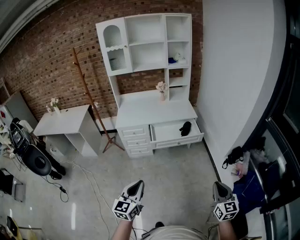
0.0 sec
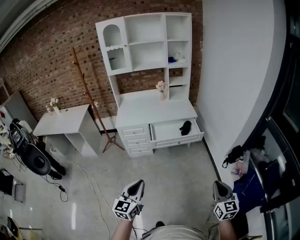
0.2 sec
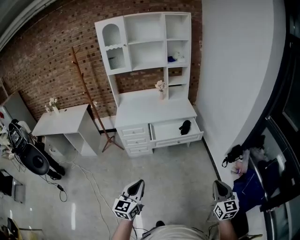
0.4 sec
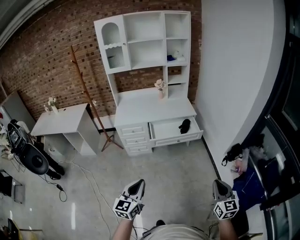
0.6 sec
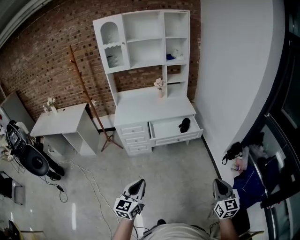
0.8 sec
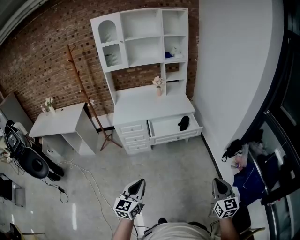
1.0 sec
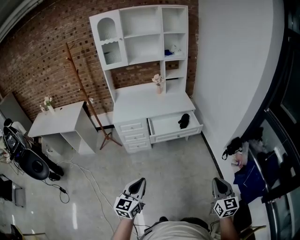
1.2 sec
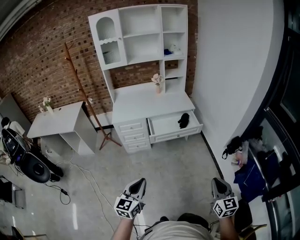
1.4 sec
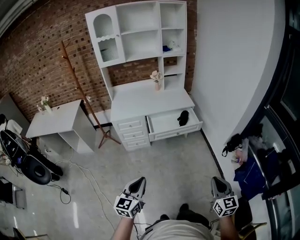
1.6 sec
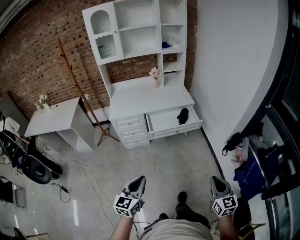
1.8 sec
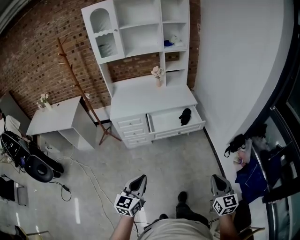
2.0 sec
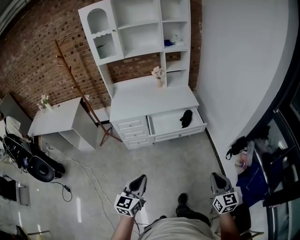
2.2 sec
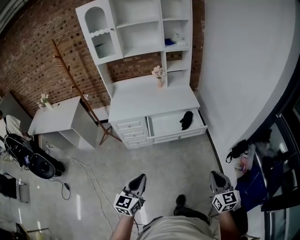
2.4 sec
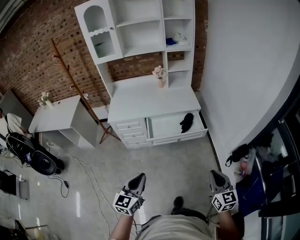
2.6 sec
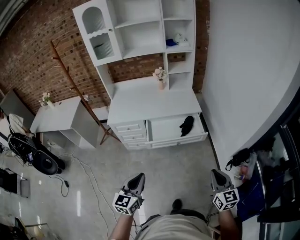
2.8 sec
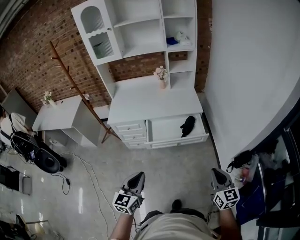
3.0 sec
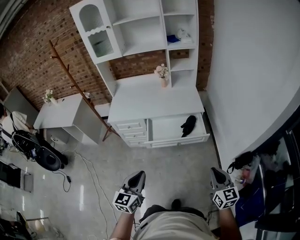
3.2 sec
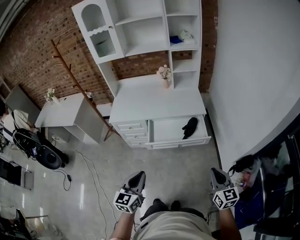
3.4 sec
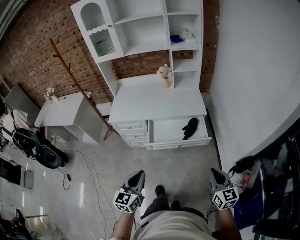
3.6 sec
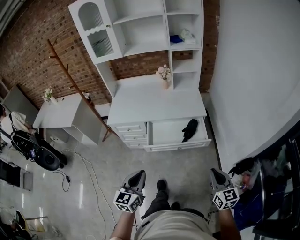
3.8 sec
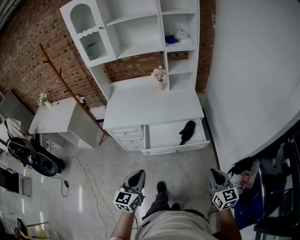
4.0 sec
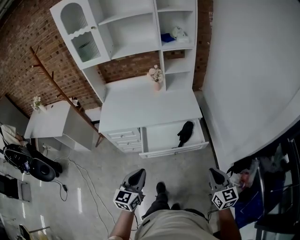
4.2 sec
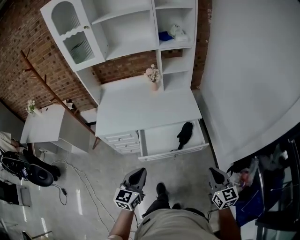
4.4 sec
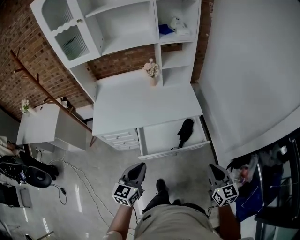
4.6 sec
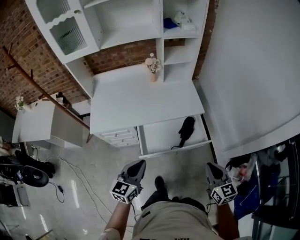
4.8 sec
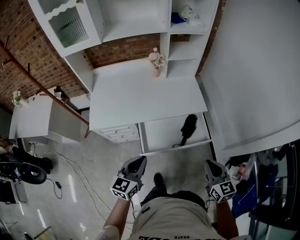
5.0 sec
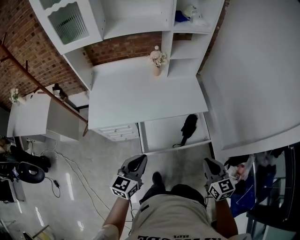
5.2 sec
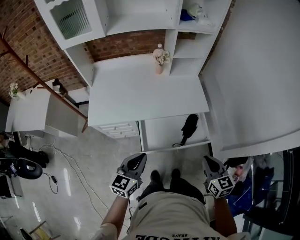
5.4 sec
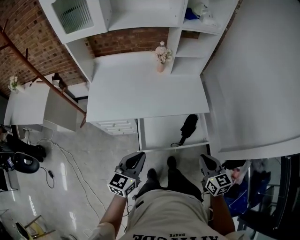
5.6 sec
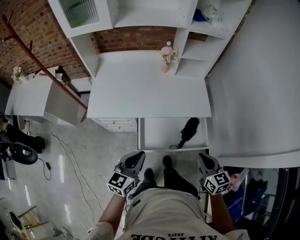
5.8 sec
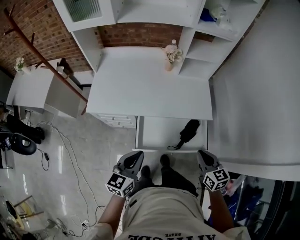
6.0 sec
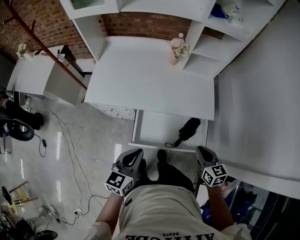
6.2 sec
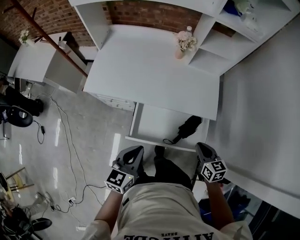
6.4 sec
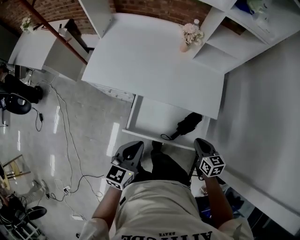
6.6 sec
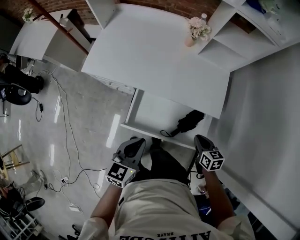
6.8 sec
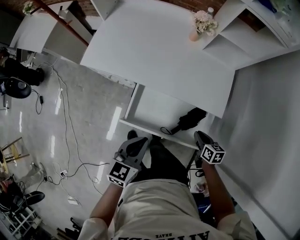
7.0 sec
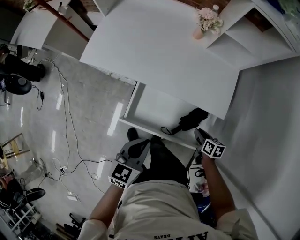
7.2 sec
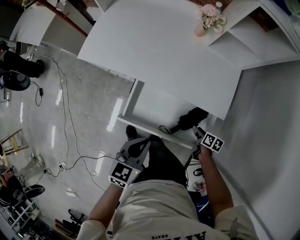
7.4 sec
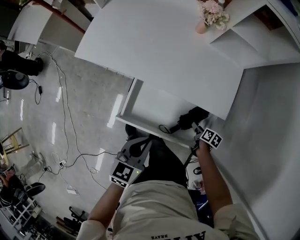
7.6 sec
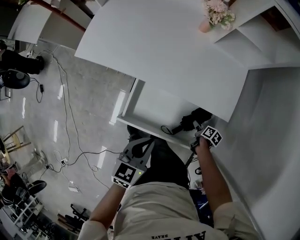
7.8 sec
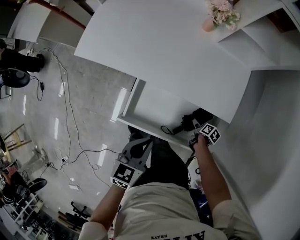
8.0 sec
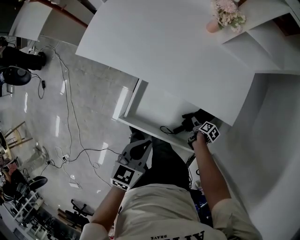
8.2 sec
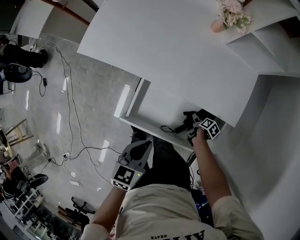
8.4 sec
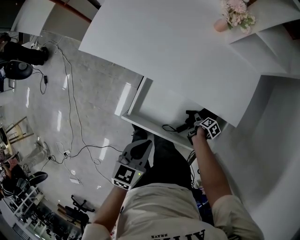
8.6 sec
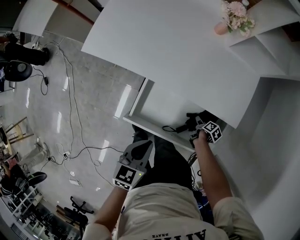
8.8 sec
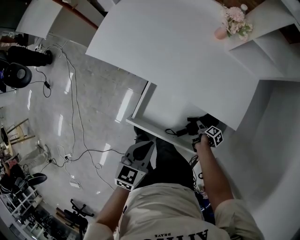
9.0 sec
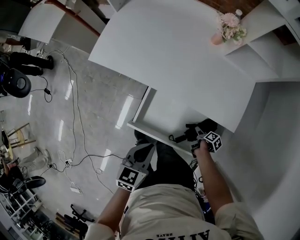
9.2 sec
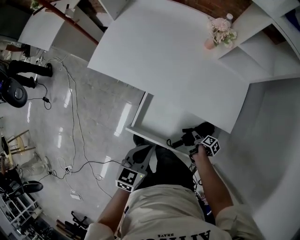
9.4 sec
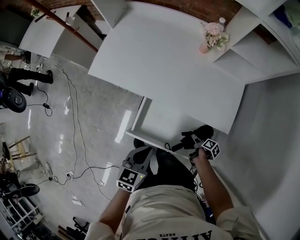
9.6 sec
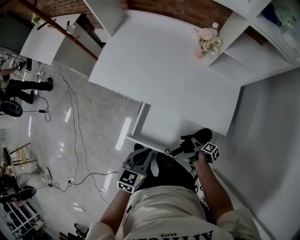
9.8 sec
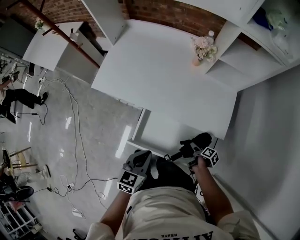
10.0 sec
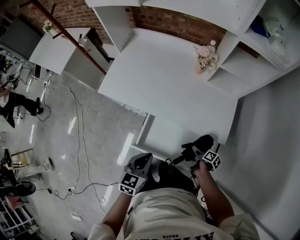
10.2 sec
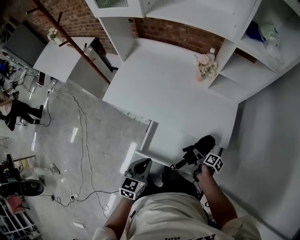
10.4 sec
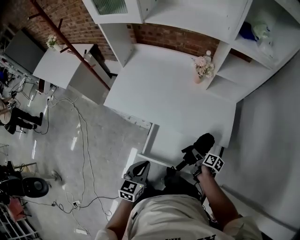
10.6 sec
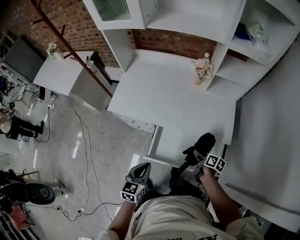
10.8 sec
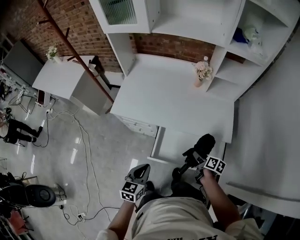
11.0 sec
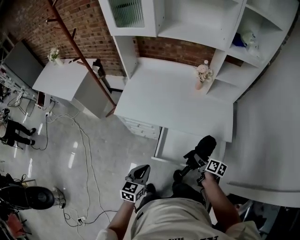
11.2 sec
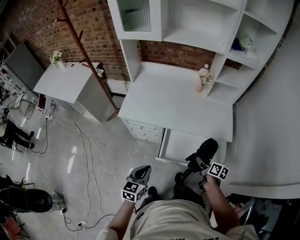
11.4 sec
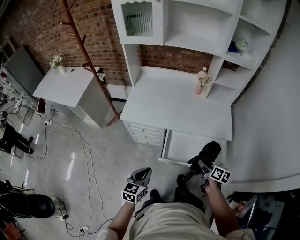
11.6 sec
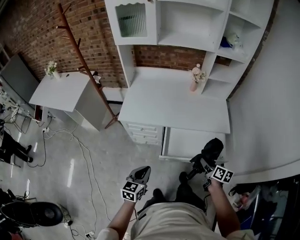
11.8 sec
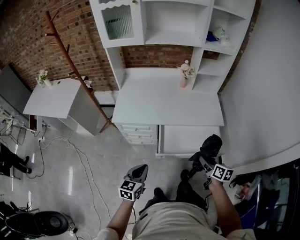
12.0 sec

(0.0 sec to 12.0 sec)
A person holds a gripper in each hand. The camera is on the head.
0.0 sec - 1.6 sec: The left gripper shifts by roughly 5 cm; the right gripper shifts roughly 5 cm to the left.
1.6 sec - 3.0 sec: The left gripper is displaced forward and to the right by roughly 25 cm; the right gripper goes approximately 30 cm forward.
3.0 sec - 4.4 sec: Both grippers move forward, approximately 20 cm.
4.4 sec - 6.0 sec: The right gripper is displaced forward and to the left by some 25 cm; the left gripper is displaced forward by approximately 15 cm.
6.0 sec - 7.6 sec: The left gripper travels downward and to the right by roughly 15 cm, and turns by roughly 20 degrees, while the right gripper goes roughly 35 cm downward, angles its fingers downward, by about 30 degrees, and opens.
7.6 sec - 9.0 sec: The right gripper is displaced downward by about 5 cm, and rotates approximately 30 degrees; the left gripper moves approximately 5 cm.
9.0 sec - 10.4 sec: The right gripper heads upward, covering some 15 cm, and swivels approximately 20 degrees, while the left gripper moves upward, roughly 5 cm.
10.4 sec - 12.0 sec: The right gripper shifts roughly 30 cm upward, backward and to the left, and rotates about 40 degrees. Meanwhile the left gripper shifts about 20 cm to the left and backward.

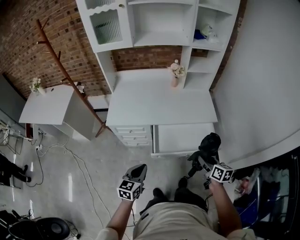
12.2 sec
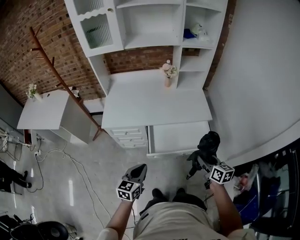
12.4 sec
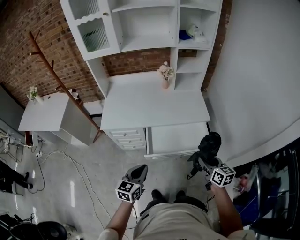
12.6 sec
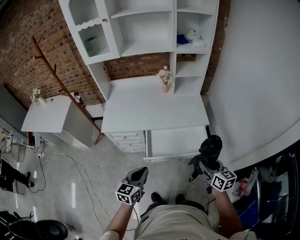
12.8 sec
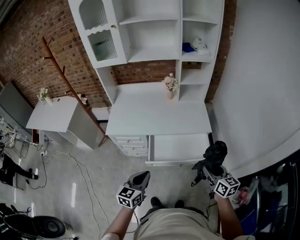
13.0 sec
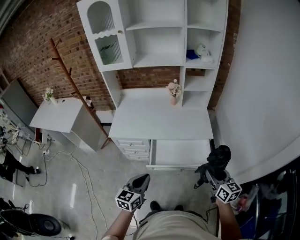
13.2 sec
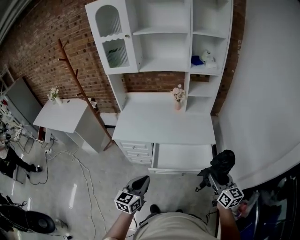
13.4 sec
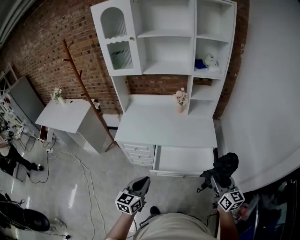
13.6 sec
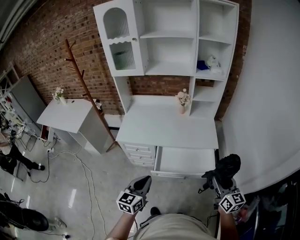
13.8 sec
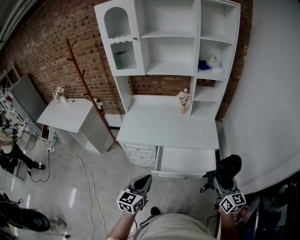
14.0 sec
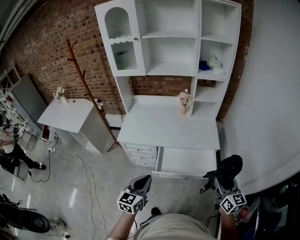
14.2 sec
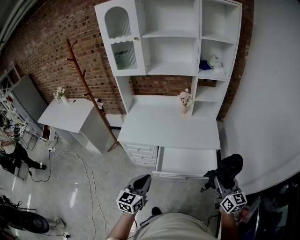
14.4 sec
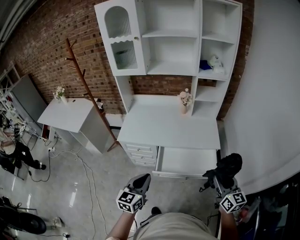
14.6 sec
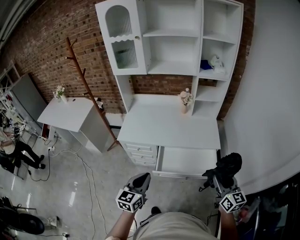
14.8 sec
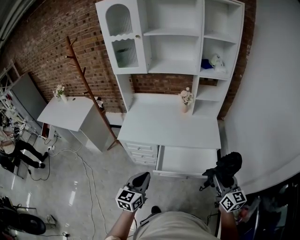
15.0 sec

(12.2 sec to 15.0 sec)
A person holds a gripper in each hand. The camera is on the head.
12.2 sec - 13.6 sec: Both grippers travel together upward and to the right, roughly 15 cm. The right gripper swivels some 30 degrees.
13.6 sec - 15.0 sec: The grippers make only small movements.

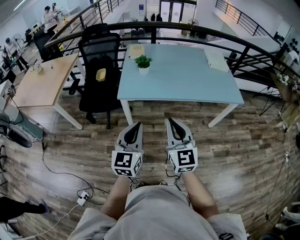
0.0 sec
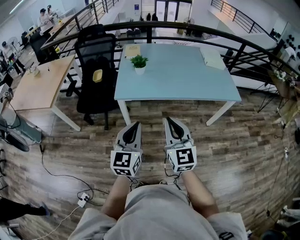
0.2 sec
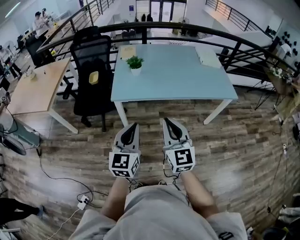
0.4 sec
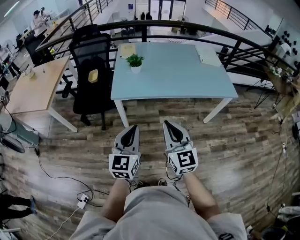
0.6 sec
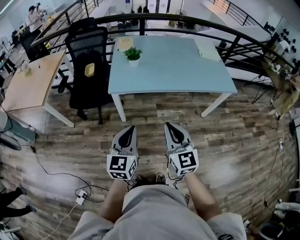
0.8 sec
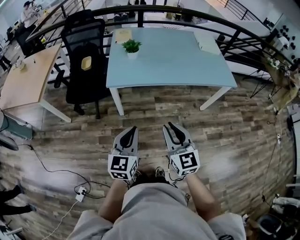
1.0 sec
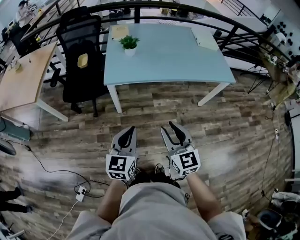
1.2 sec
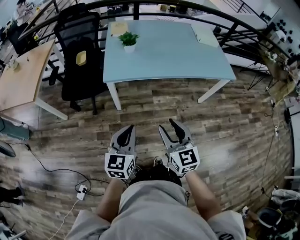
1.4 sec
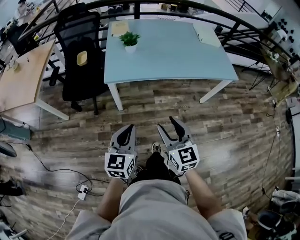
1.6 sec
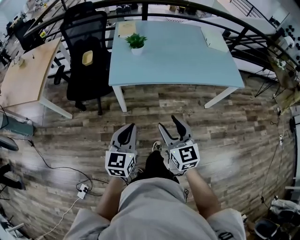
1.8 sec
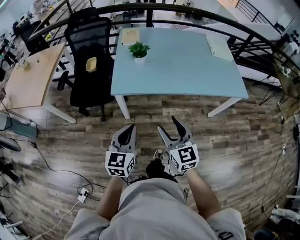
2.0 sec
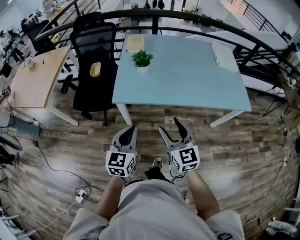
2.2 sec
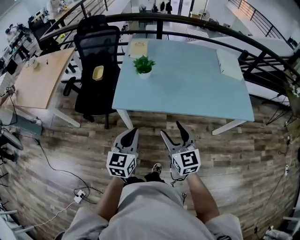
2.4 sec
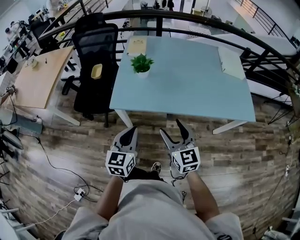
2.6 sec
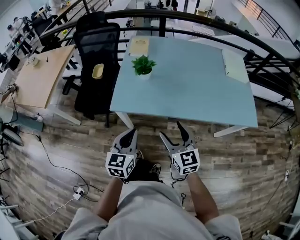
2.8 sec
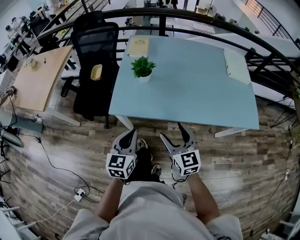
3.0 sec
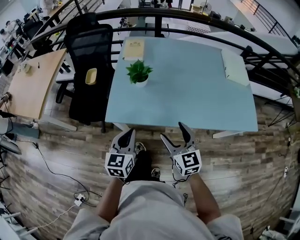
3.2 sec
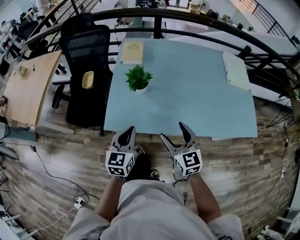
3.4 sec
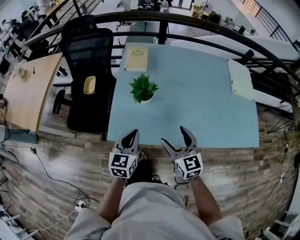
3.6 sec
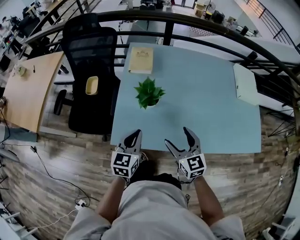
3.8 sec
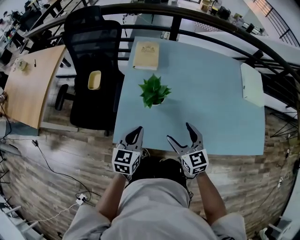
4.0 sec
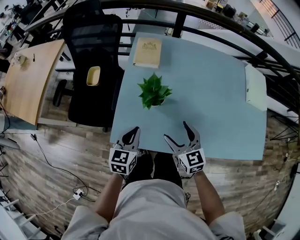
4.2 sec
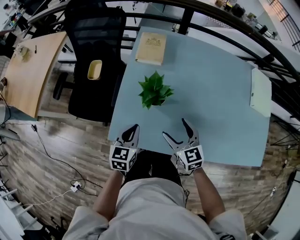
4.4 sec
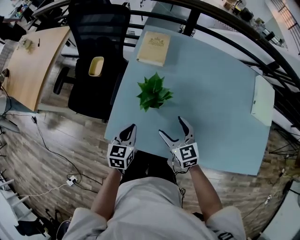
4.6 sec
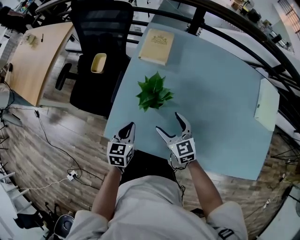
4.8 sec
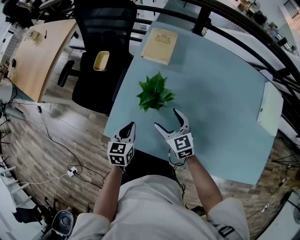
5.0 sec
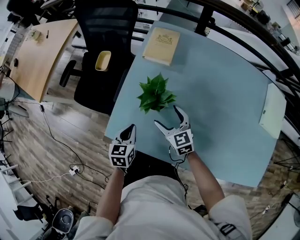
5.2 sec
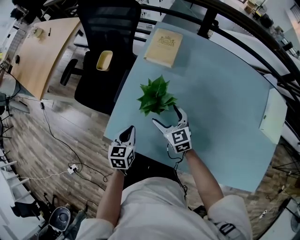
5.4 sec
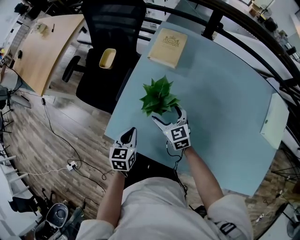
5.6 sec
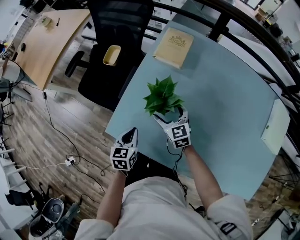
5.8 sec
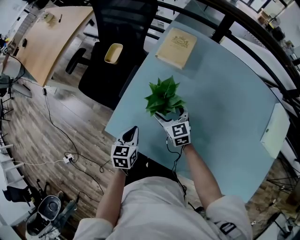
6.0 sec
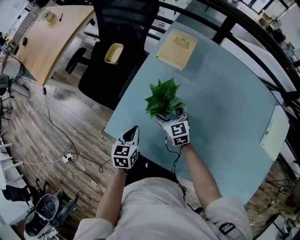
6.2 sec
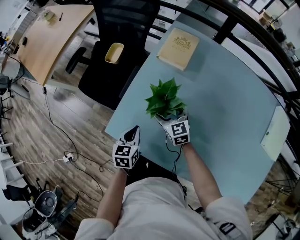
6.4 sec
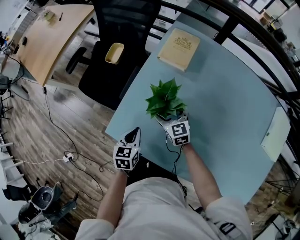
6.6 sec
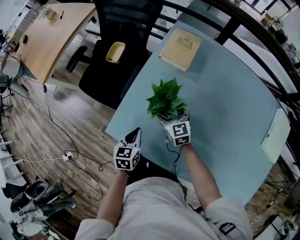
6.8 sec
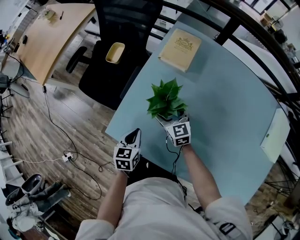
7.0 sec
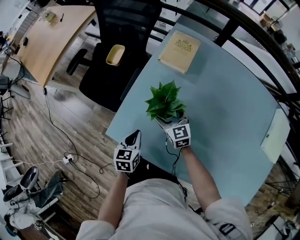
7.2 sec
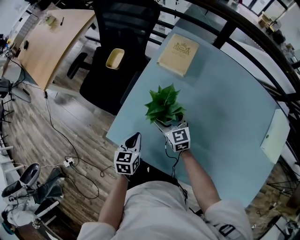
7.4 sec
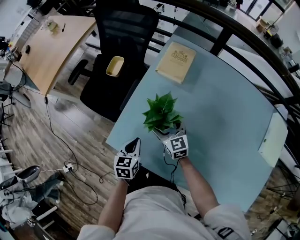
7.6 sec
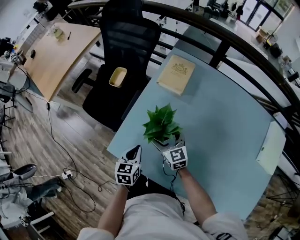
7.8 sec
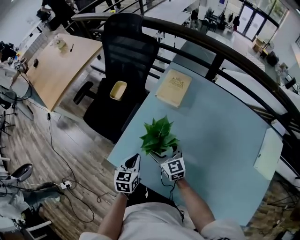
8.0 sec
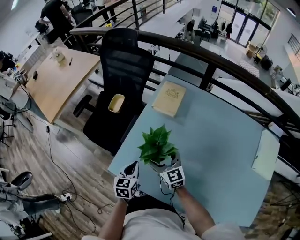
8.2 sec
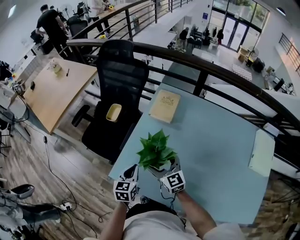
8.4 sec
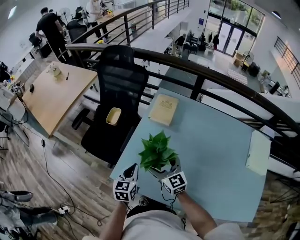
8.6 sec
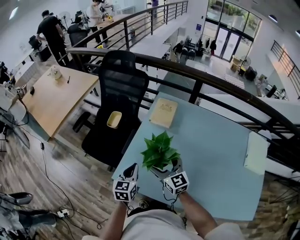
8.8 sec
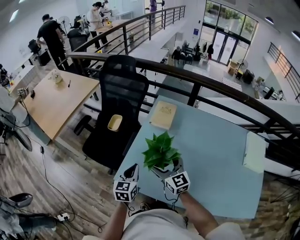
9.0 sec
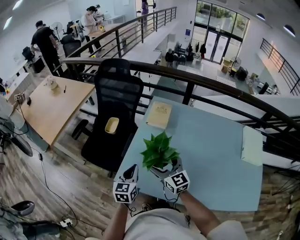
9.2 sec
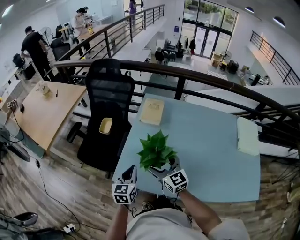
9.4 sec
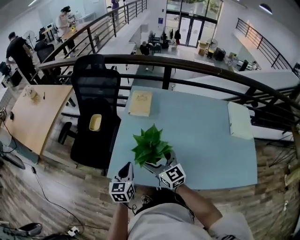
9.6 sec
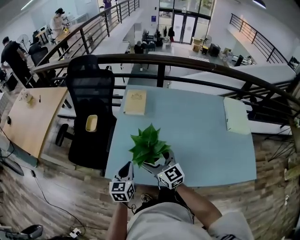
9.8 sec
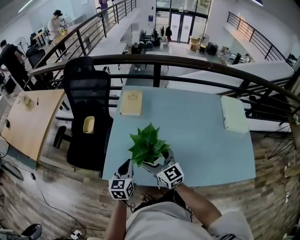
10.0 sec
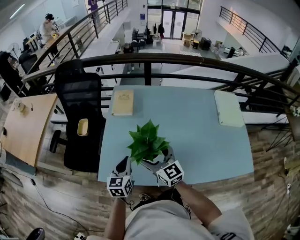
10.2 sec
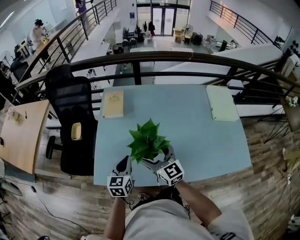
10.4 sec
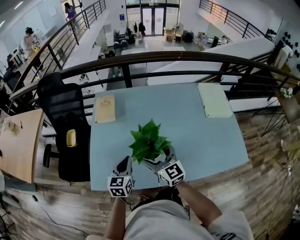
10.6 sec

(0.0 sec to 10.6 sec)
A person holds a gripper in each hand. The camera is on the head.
0.0 sec - 1.6 sec: The grippers both shift downward by roughly 10 cm. The right gripper opens.
1.6 sec - 3.0 sec: The grippers both shift forward by approximately 25 cm.
3.0 sec - 4.6 sec: The right gripper travels forward by about 30 cm, while the left gripper goes approximately 30 cm forward and downward.
4.6 sec - 6.0 sec: The left gripper heads downward, covering roughly 5 cm; the right gripper is displaced forward and downward by roughly 15 cm.
6.0 sec - 7.6 sec: The grippers stay close to where they were, moving slightly.
7.6 sec - 9.0 sec: Both grippers move upward, about 15 cm. The left gripper changes its angle by some 20 degrees.
9.0 sec - 10.6 sec: The left gripper is displaced to the right by roughly 20 cm, and swivels about 20 degrees, while the right gripper goes approximately 20 cm to the right and backward, and rotates about 20 degrees.
